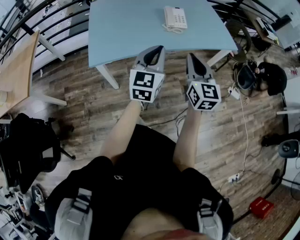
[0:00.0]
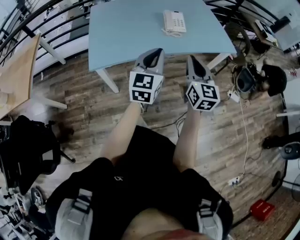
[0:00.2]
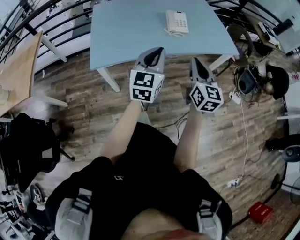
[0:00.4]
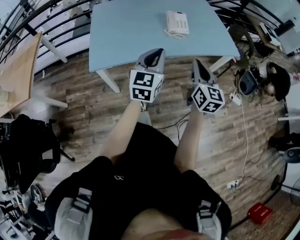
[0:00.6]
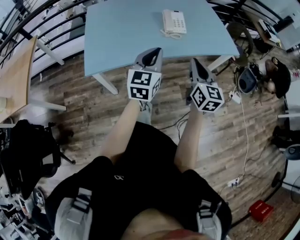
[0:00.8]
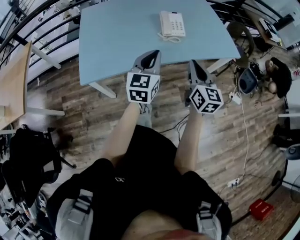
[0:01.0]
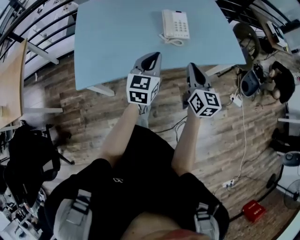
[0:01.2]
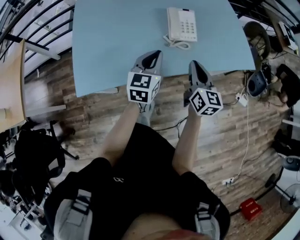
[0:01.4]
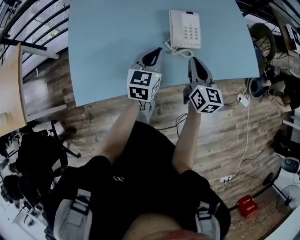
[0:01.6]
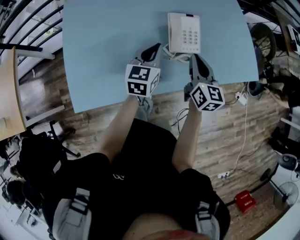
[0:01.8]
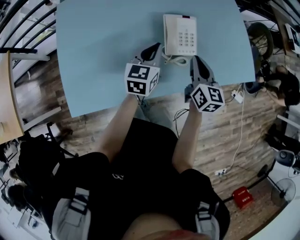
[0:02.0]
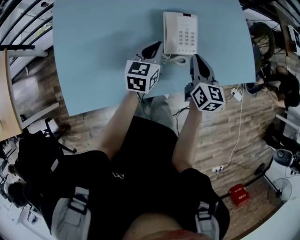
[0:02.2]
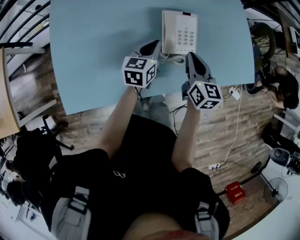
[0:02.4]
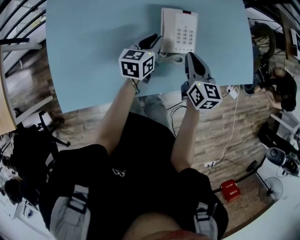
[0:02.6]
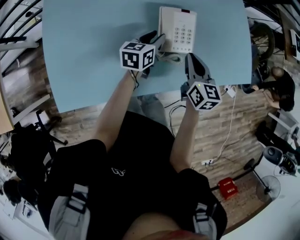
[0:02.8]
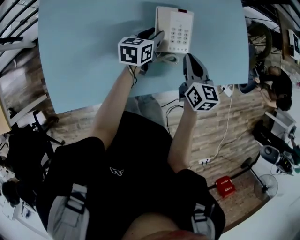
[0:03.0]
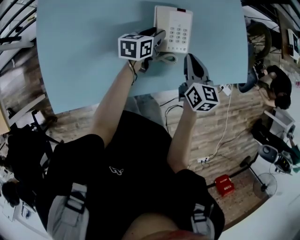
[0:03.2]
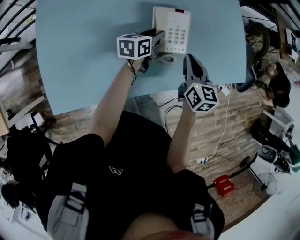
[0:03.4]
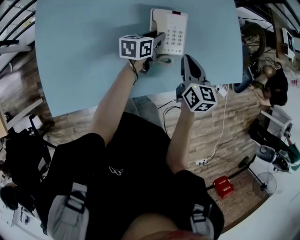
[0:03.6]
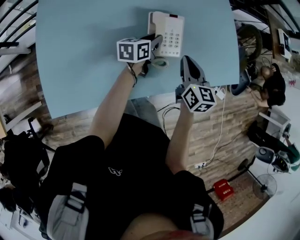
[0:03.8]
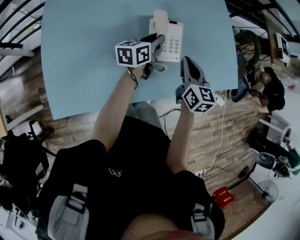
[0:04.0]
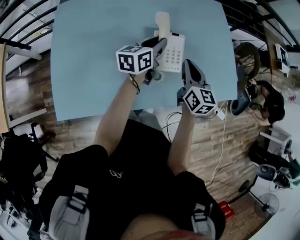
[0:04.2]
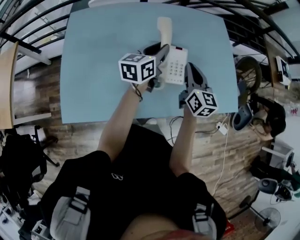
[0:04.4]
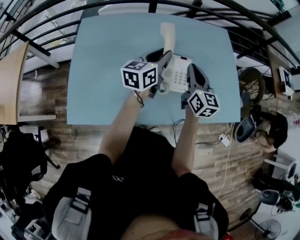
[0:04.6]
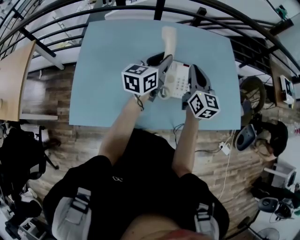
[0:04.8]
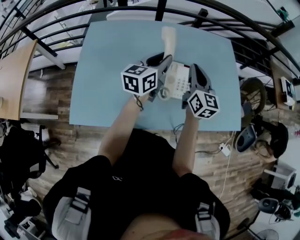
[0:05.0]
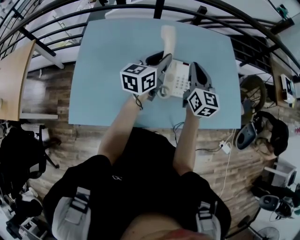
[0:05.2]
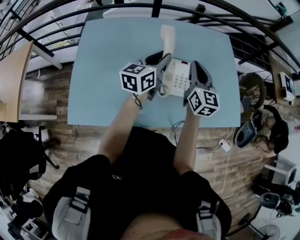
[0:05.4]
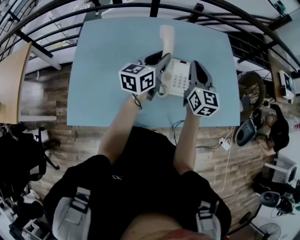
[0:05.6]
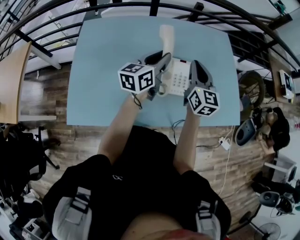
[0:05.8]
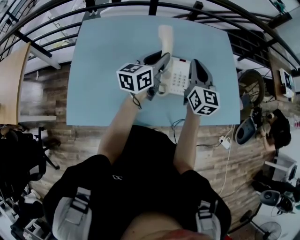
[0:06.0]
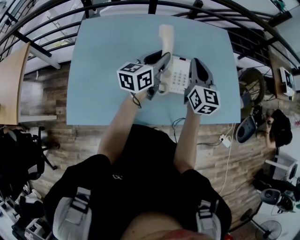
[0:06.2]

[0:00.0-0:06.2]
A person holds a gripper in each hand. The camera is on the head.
0:00.0 to 0:01.6: Both grippers travel together forward and downward, roughly 40 cm. The left gripper turns by about 20 degrees. Meanwhile the right gripper changes its angle by about 20 degrees.
0:01.6 to 0:03.2: The left gripper travels forward and downward by some 20 cm, turns by some 30 degrees, and opens its fingers. Meanwhile the right gripper goes approximately 10 cm forward and downward.
0:03.2 to 0:04.6: The right gripper goes about 15 cm upward, and rotates about 20 degrees. The left gripper heads upward, covering some 25 cm, and swivels some 30 degrees.
0:04.6 to 0:06.2: The grippers stay close to where they were, moving slightly.

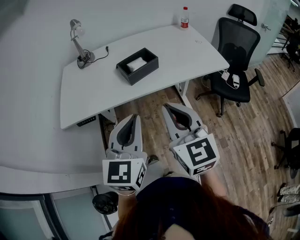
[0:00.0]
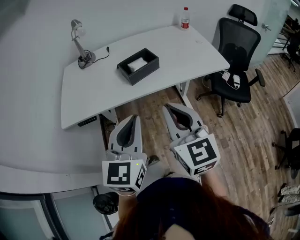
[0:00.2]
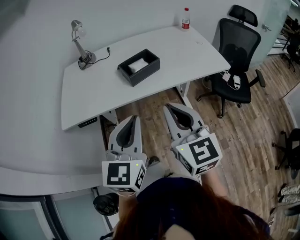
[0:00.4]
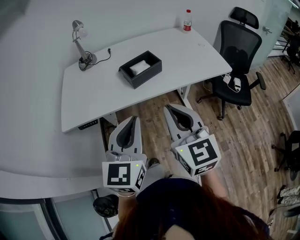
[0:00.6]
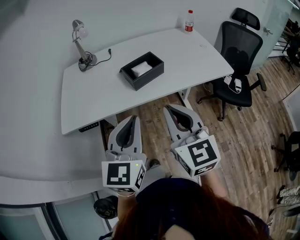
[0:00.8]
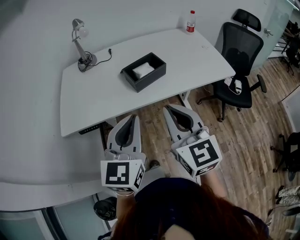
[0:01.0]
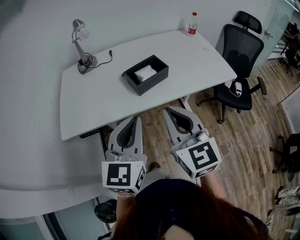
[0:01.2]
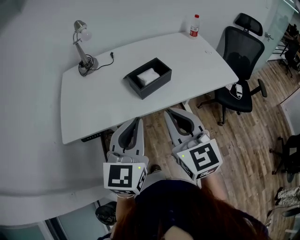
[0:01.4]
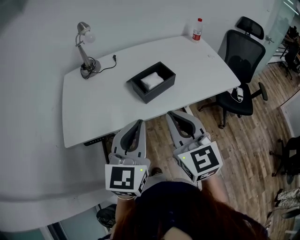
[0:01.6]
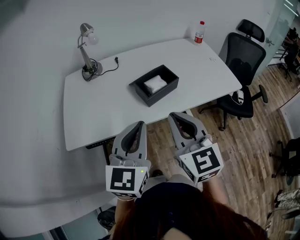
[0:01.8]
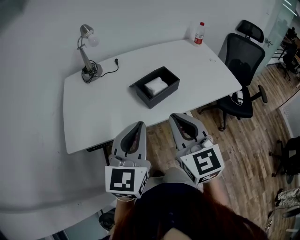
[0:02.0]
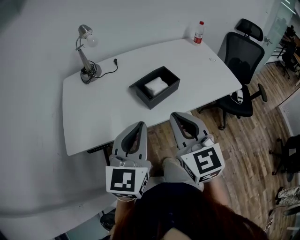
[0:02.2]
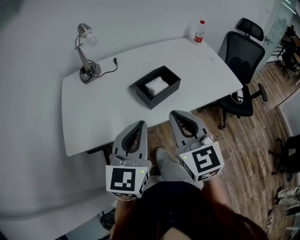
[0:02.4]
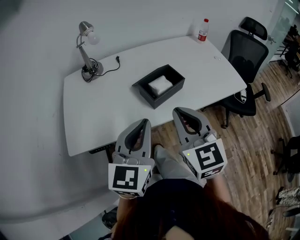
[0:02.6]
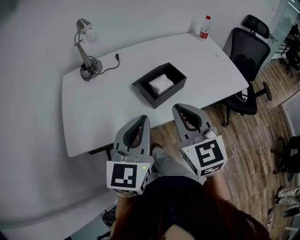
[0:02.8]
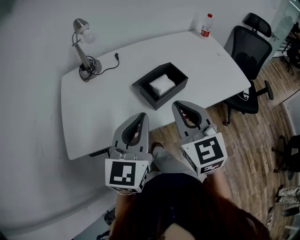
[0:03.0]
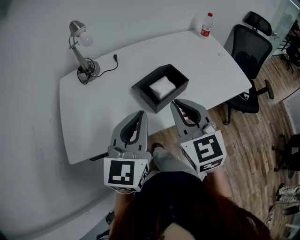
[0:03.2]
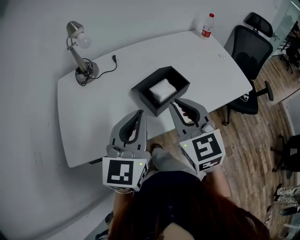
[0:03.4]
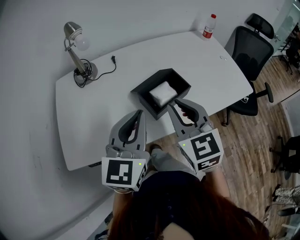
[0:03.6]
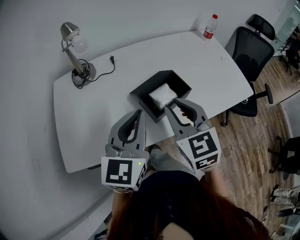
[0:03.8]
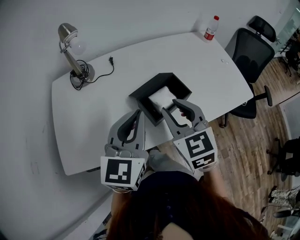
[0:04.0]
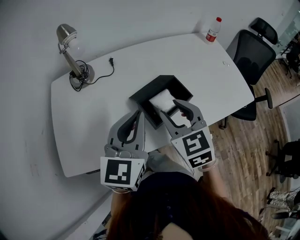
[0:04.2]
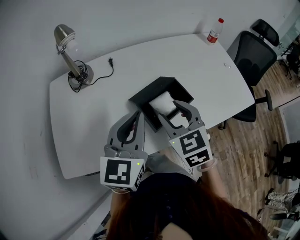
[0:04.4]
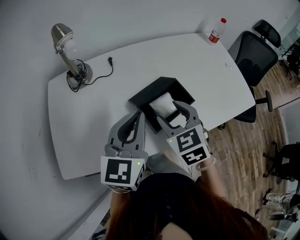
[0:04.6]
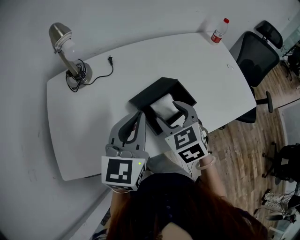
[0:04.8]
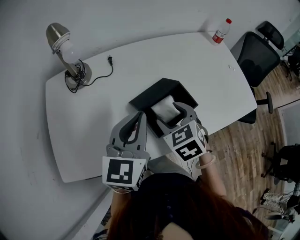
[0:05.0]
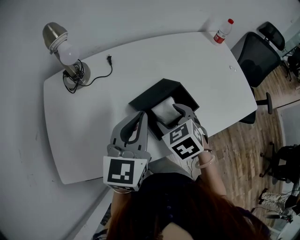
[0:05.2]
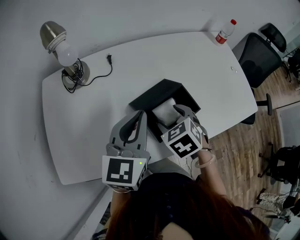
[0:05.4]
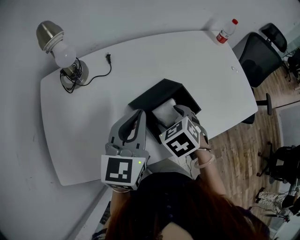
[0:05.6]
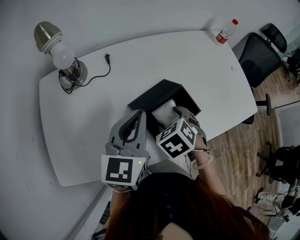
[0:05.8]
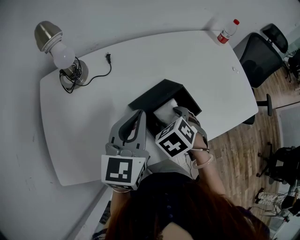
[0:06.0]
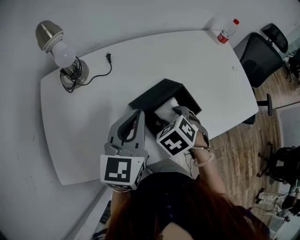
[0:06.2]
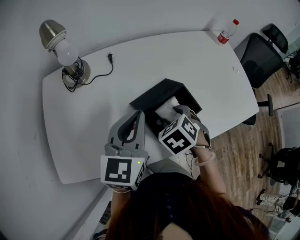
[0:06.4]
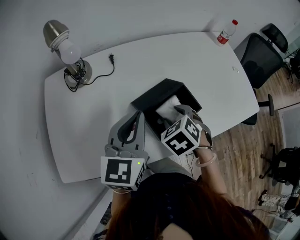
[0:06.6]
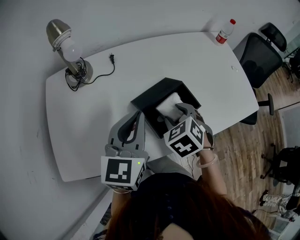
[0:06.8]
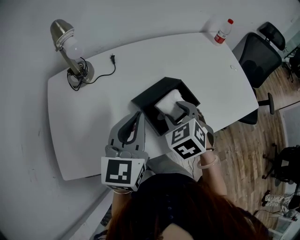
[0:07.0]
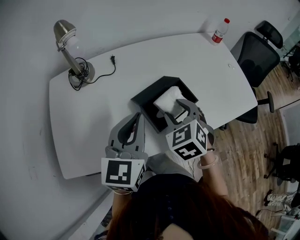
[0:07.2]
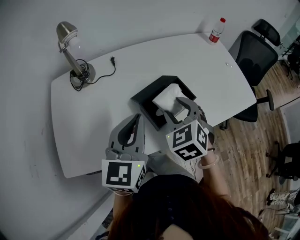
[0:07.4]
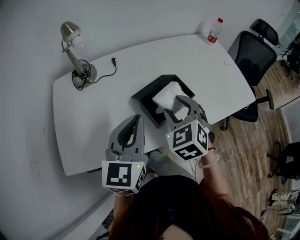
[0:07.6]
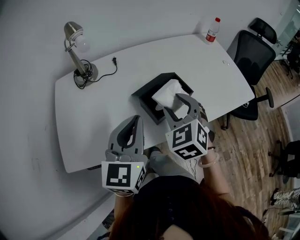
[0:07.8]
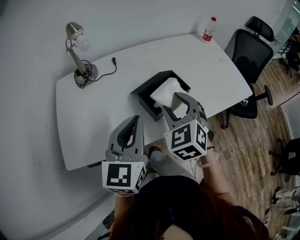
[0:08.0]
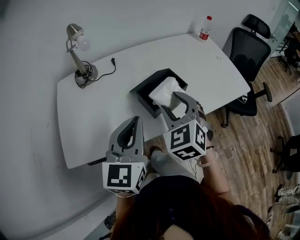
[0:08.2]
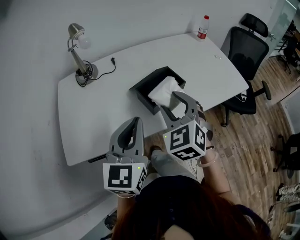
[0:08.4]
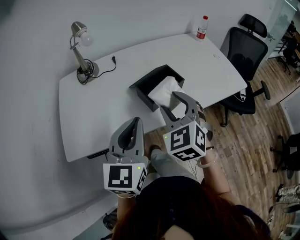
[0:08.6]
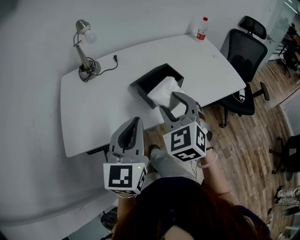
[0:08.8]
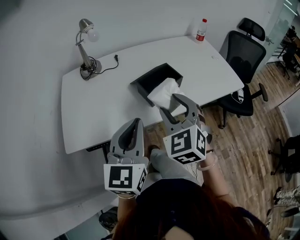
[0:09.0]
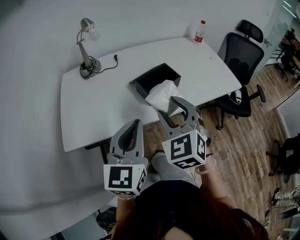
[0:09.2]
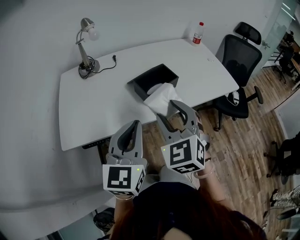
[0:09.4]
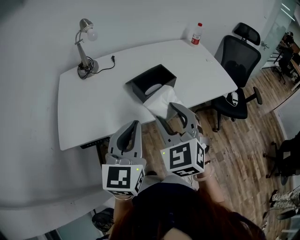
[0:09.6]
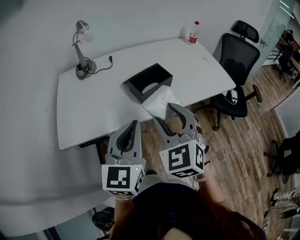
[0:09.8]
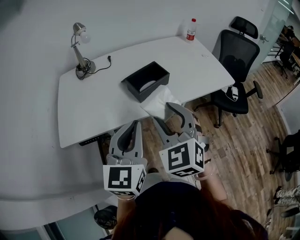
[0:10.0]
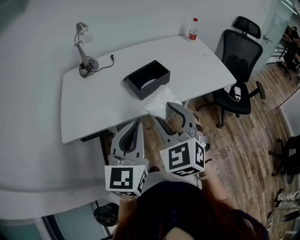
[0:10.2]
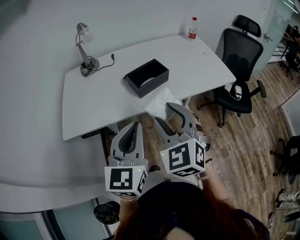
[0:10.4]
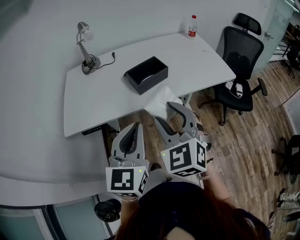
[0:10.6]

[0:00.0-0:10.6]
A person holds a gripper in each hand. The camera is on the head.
0:00.0 to 0:01.6: Both grippers travel together forward and to the left, about 10 cm.
0:01.6 to 0:03.0: The grippers both shift forward by roughly 10 cm.
0:03.0 to 0:04.6: The right gripper shifts approximately 15 cm forward and downward, rotates about 20 degrees, and opens up. Meanwhile the left gripper travels forward by about 15 cm.
0:04.6 to 0:06.0: The left gripper shifts roughly 5 cm forward. The right gripper goes about 10 cm downward, and angles its fingers downward, by roughly 30 degrees.
0:06.0 to 0:07.6: The left gripper goes about 10 cm backward. Meanwhile the right gripper moves upward, about 10 cm, and points its fingers approximately 30 degrees further upward.
0:07.6 to 0:09.0: The left gripper goes some 15 cm backward; the right gripper travels backward and upward by approximately 15 cm.
0:09.0 to 0:10.6: The two grippers go approximately 15 cm backward and to the right.

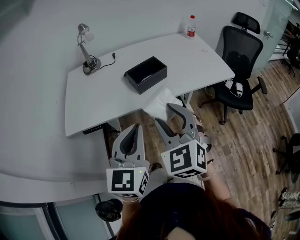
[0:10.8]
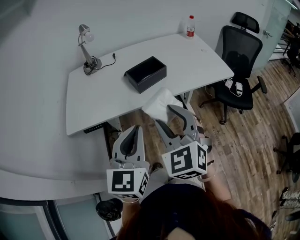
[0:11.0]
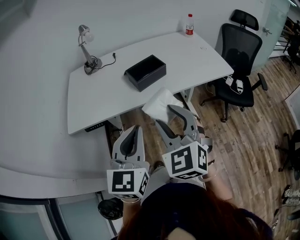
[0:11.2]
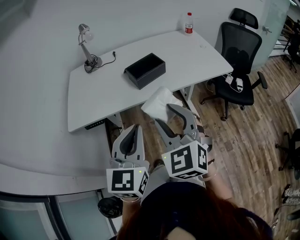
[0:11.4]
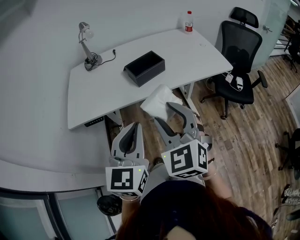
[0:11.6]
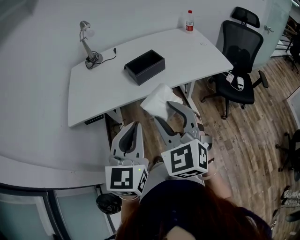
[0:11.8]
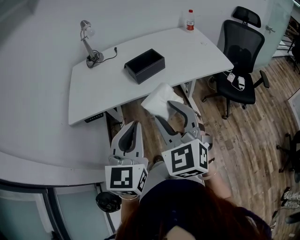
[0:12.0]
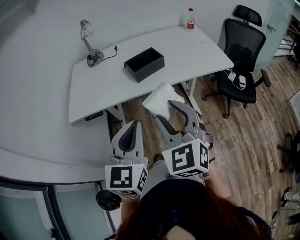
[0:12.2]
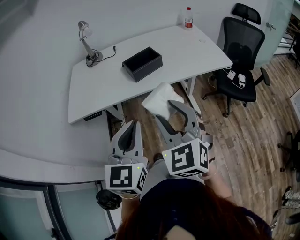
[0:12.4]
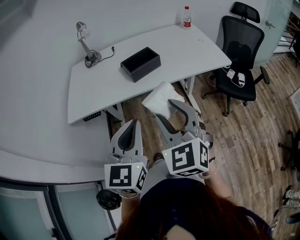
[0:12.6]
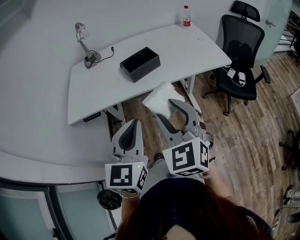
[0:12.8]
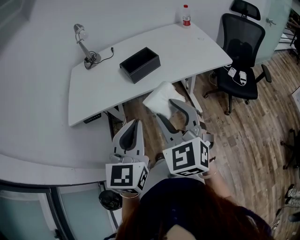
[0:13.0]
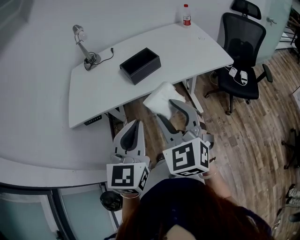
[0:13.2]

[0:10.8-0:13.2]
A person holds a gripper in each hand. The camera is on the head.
0:10.8 to 0:12.0: Both grippers travel together backward, approximately 5 cm.
0:12.0 to 0:13.2: The grippers make only small movements.

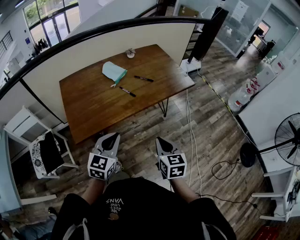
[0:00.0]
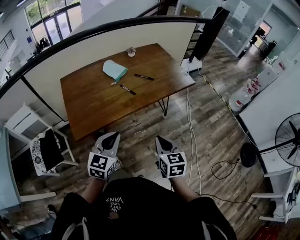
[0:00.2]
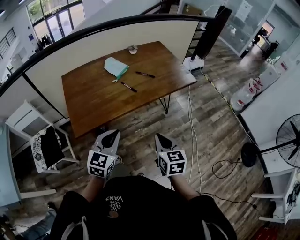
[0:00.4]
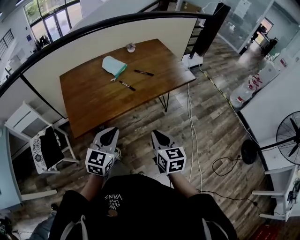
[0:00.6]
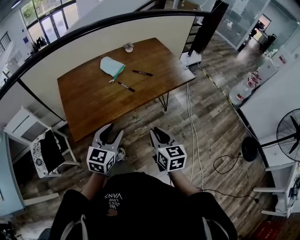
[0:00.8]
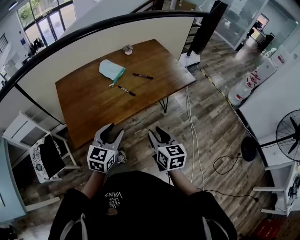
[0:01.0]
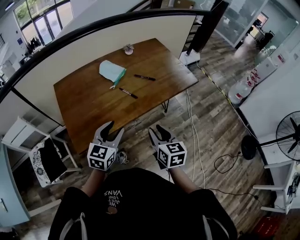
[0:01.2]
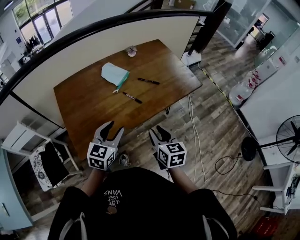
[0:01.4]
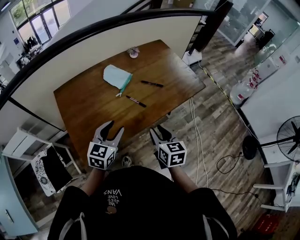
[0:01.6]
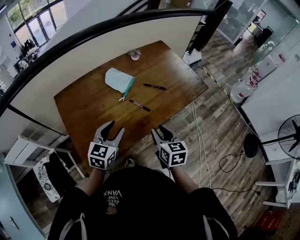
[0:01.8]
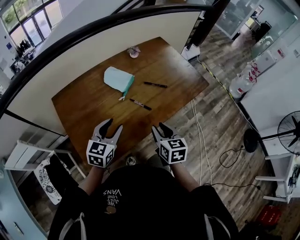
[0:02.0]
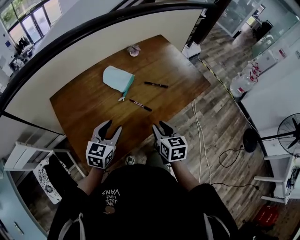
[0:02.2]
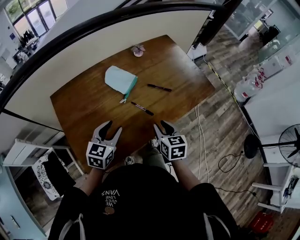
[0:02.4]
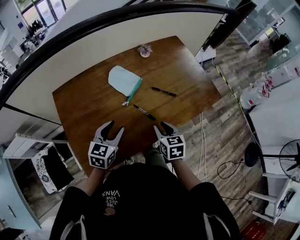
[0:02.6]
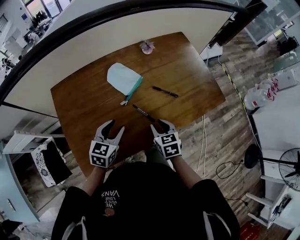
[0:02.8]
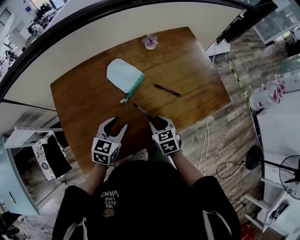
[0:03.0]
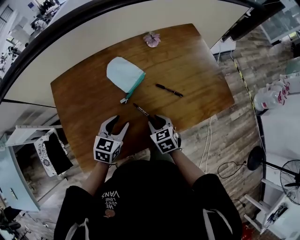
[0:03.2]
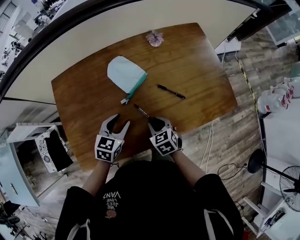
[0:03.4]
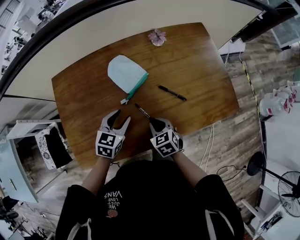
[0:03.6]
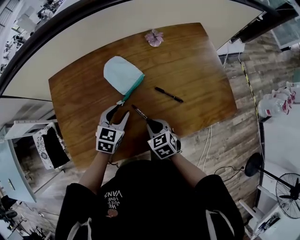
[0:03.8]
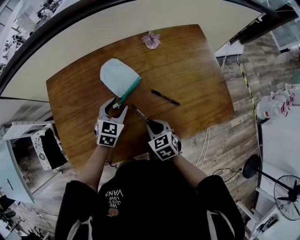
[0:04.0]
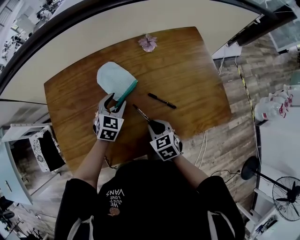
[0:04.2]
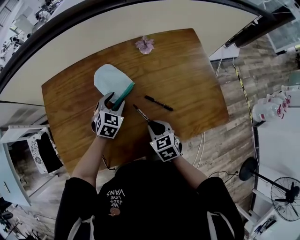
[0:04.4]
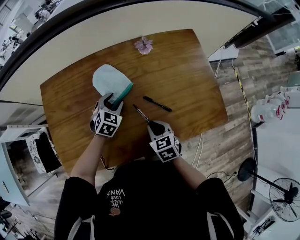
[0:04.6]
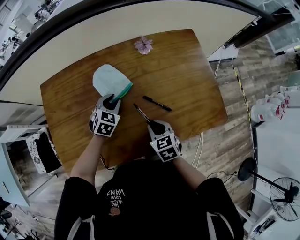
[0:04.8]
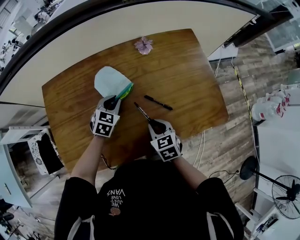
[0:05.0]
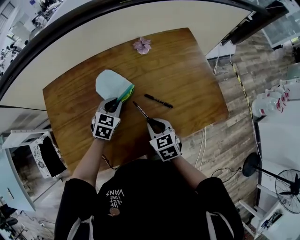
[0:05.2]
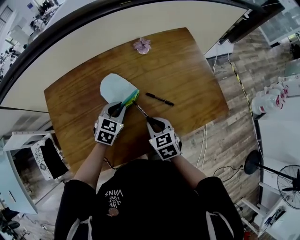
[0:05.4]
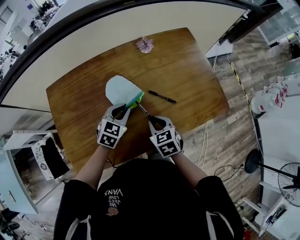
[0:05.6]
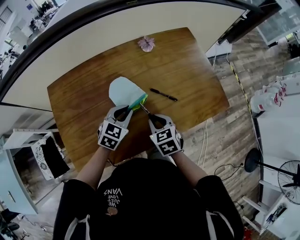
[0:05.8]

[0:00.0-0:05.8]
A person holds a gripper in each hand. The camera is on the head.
0:00.0 to 0:01.4: The right gripper moves forward and to the left, approximately 15 cm, and opens up. Meanwhile the left gripper goes roughly 15 cm forward, and opens.
0:01.4 to 0:02.8: The grippers both shift forward and downward by roughly 20 cm. The right gripper swivels roughly 20 degrees.
0:02.8 to 0:04.4: The right gripper is displaced forward and to the right by approximately 10 cm, and changes its angle by about 20 degrees. The left gripper goes about 20 cm forward, downward and to the right, and turns by approximately 20 degrees.
0:04.4 to 0:05.8: The right gripper changes place by roughly 5 cm; the left gripper heads backward and upward, covering roughly 10 cm, and closes.
